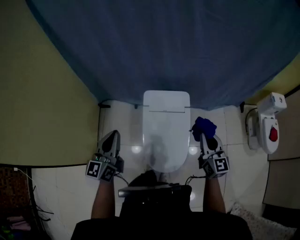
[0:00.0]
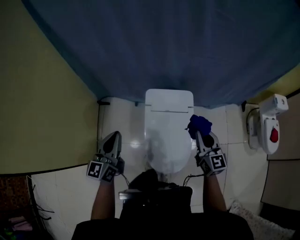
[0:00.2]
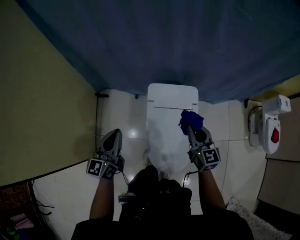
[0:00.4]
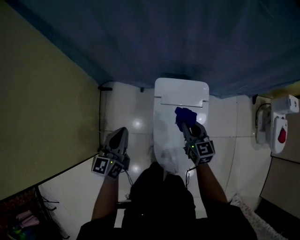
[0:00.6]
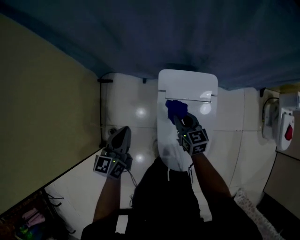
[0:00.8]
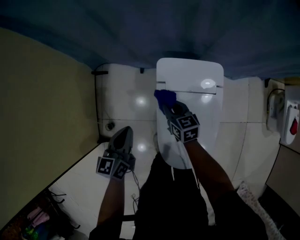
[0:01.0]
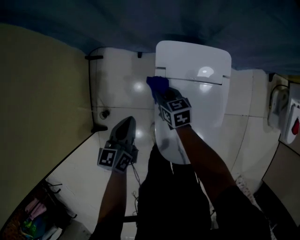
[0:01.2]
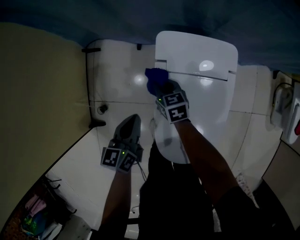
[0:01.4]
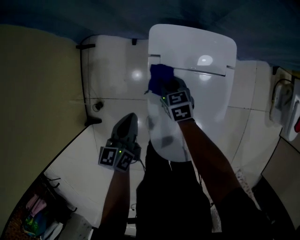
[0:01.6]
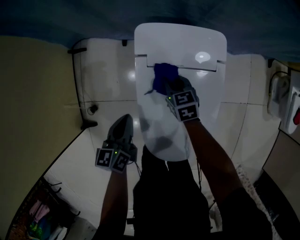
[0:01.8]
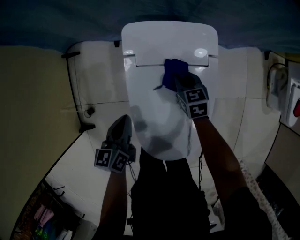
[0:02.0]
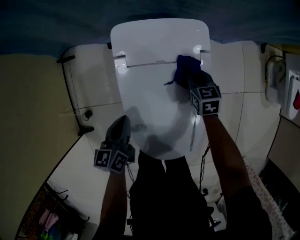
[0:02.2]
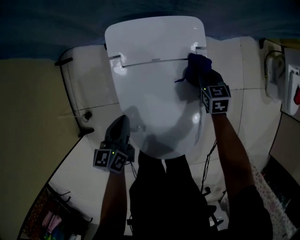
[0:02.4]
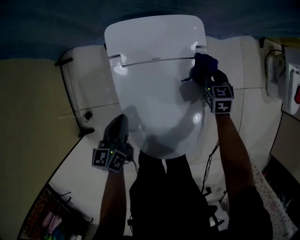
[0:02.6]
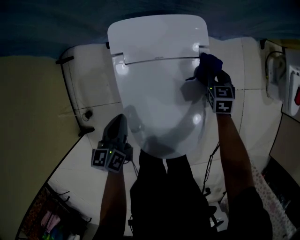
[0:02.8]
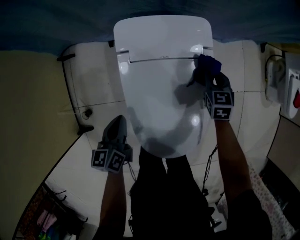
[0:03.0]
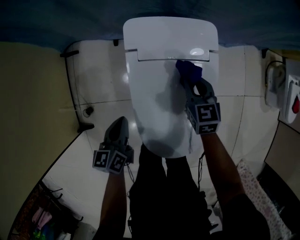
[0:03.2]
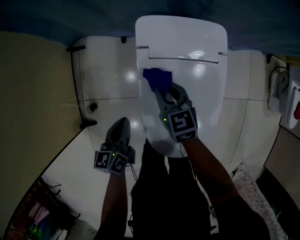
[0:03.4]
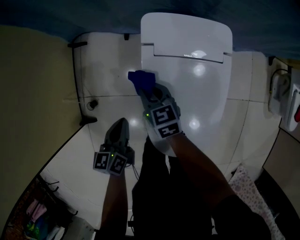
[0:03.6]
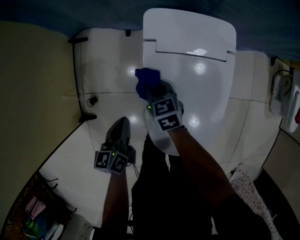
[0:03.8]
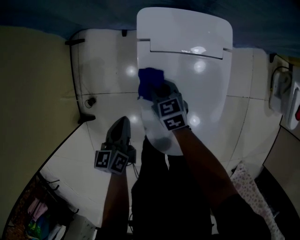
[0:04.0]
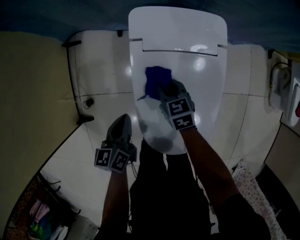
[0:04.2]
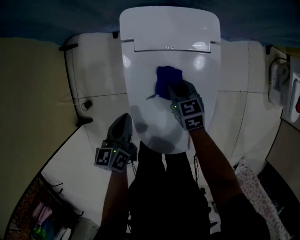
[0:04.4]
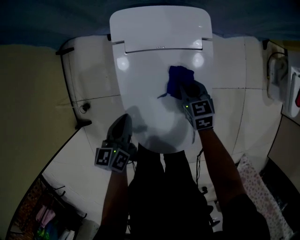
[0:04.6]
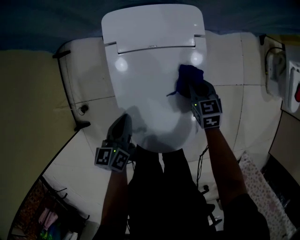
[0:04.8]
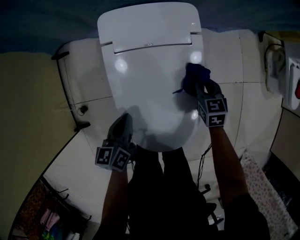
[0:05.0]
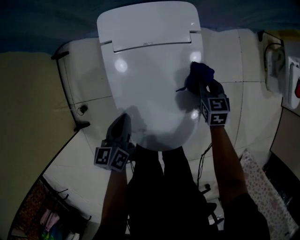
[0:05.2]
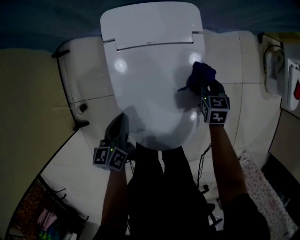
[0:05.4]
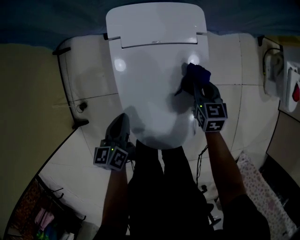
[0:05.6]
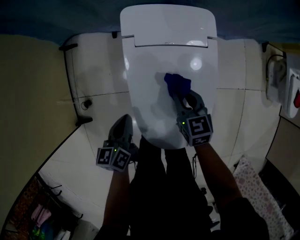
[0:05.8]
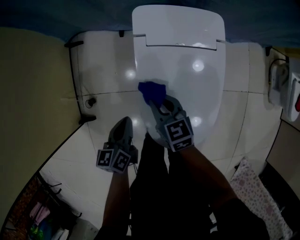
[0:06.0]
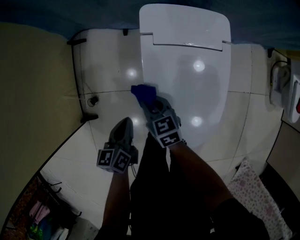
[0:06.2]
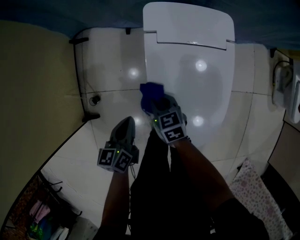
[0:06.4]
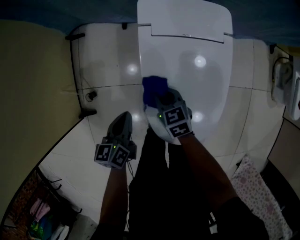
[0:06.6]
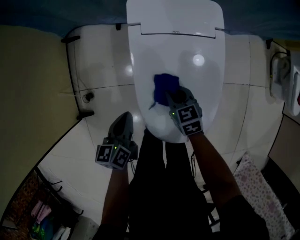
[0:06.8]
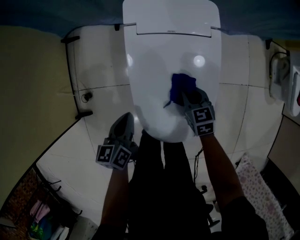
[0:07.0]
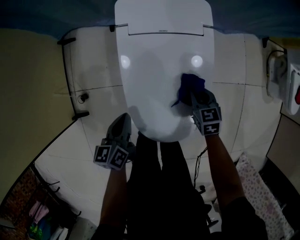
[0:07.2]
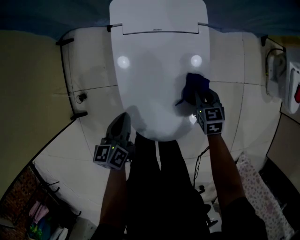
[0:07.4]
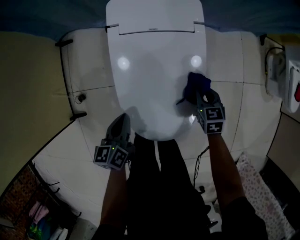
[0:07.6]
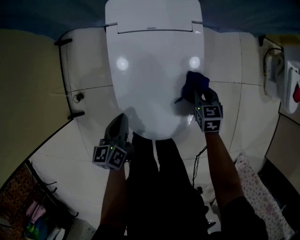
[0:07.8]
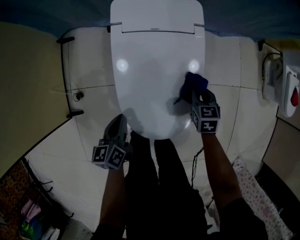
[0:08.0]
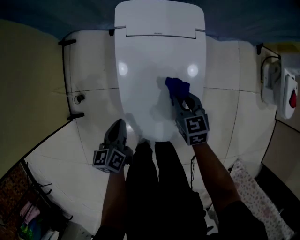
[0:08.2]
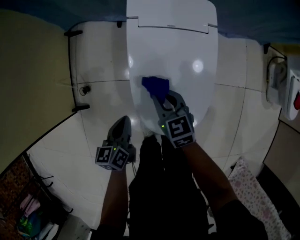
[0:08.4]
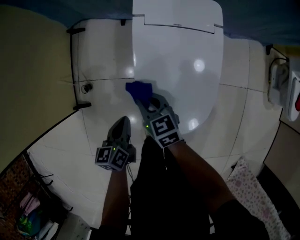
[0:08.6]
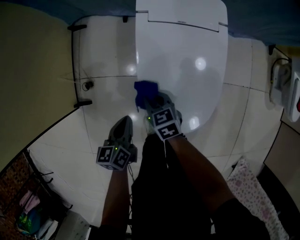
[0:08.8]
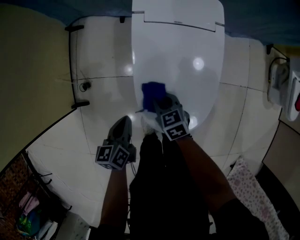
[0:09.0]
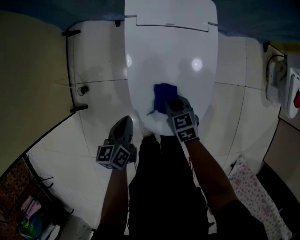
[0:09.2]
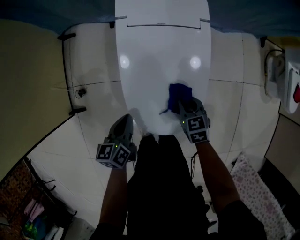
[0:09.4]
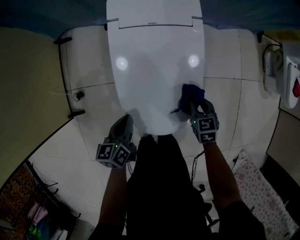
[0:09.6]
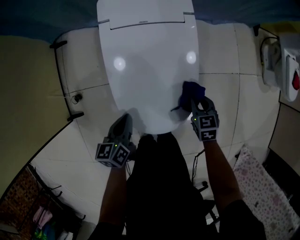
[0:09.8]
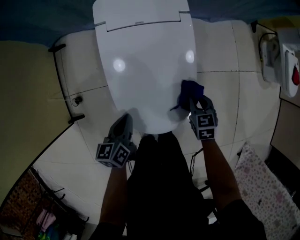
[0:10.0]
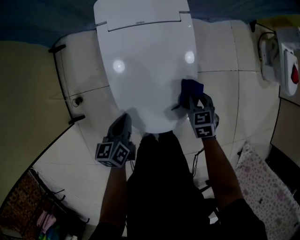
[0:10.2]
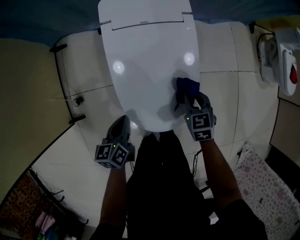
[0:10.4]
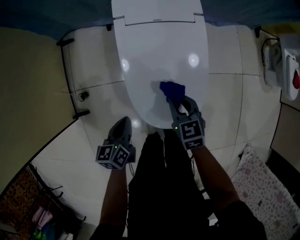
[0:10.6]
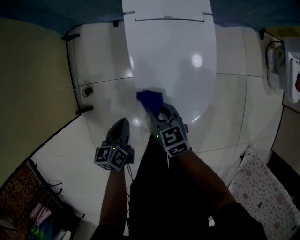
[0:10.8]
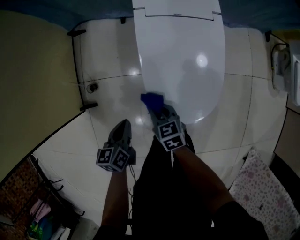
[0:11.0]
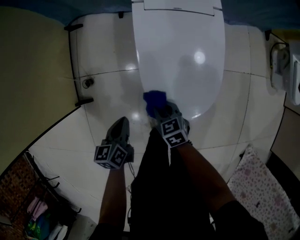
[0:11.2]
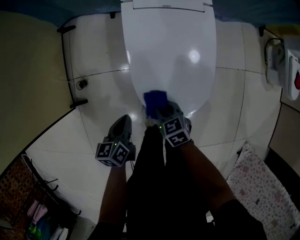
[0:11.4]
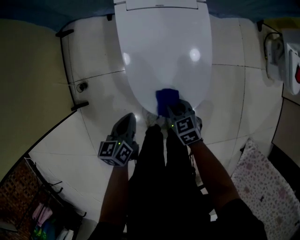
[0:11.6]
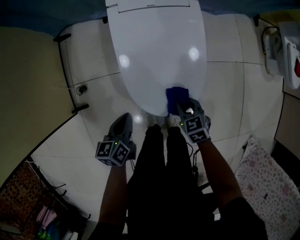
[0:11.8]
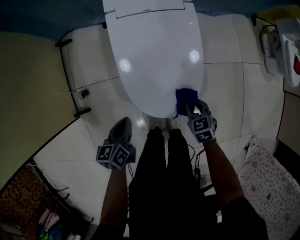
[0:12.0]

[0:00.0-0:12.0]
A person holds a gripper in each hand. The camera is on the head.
0:00.0 to 0:01.6: The right gripper shifts approximately 60 cm downward, forward and to the left, and tips its fingers downward by about 40 degrees. Meanwhile the left gripper is displaced downward by approximately 40 cm, and turns by some 30 degrees.
0:01.6 to 0:03.0: The right gripper heads to the right, covering approximately 30 cm, and rotates roughly 30 degrees. Meanwhile the left gripper moves some 5 cm.
0:03.0 to 0:04.4: The right gripper heads to the left, covering roughly 20 cm, and swivels some 20 degrees.
0:04.4 to 0:06.0: The right gripper goes roughly 15 cm to the left, upward and backward. The left gripper changes place by some 5 cm.
0:06.0 to 0:07.6: The left gripper is displaced to the right and backward by approximately 10 cm. The right gripper shifts approximately 30 cm to the right, and swivels about 30 degrees.
0:07.6 to 0:09.0: The right gripper is displaced to the left by approximately 25 cm, and rotates approximately 20 degrees. The left gripper goes about 10 cm to the left and backward.
0:09.0 to 0:10.4: The right gripper changes place by approximately 20 cm, and rotates some 20 degrees.
0:10.4 to 0:12.0: The left gripper travels backward by about 5 cm, and moves approximately 10 cm to the left and comes back; the right gripper travels backward by about 10 cm, and goes to the left and returns, about 25 cm each way.

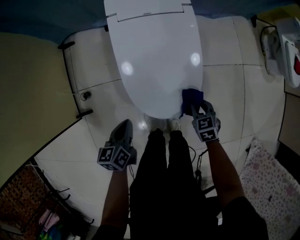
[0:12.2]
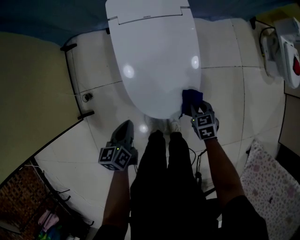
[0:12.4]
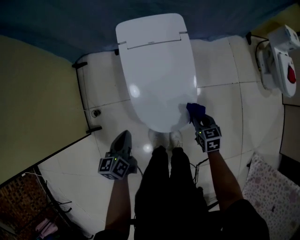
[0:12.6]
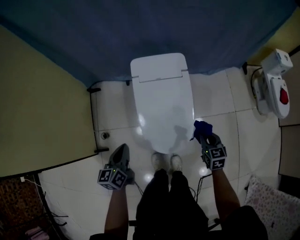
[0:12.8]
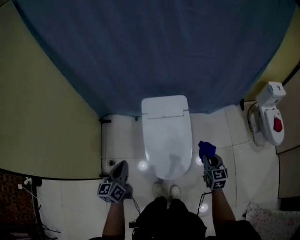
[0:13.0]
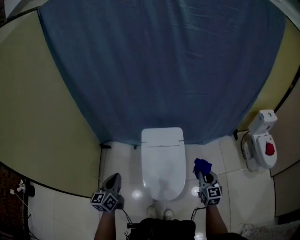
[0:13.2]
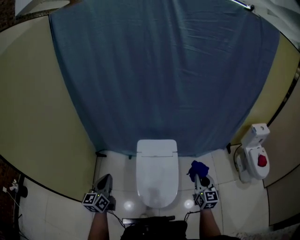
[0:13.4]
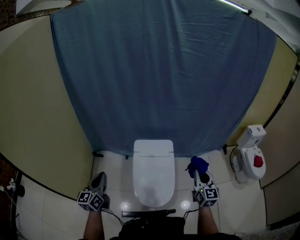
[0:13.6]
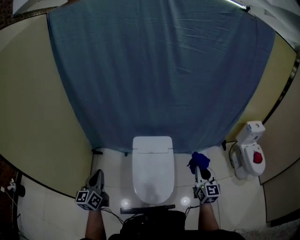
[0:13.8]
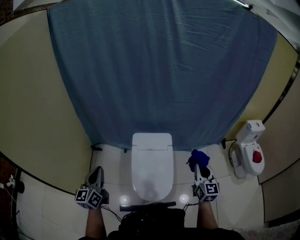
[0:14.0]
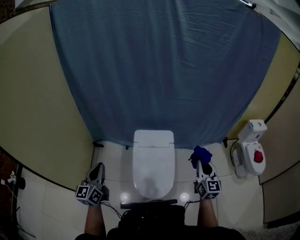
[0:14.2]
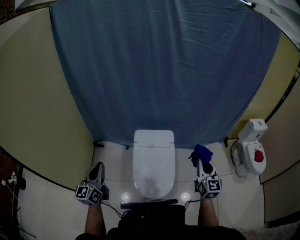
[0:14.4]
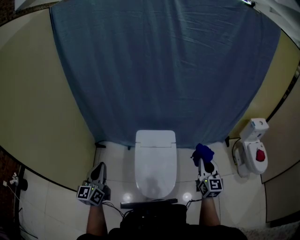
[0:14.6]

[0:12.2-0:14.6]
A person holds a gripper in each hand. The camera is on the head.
0:12.2 to 0:13.4: The two grippers go about 50 cm upward. The left gripper tips its fingers upward by about 30 degrees. The right gripper tips its fingers upward by about 50 degrees.
0:13.4 to 0:14.6: The right gripper travels upward by roughly 5 cm. Meanwhile the left gripper ends up some 5 cm from where it was.

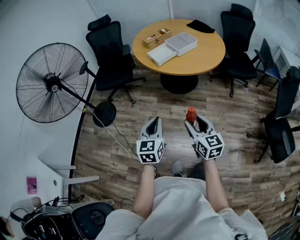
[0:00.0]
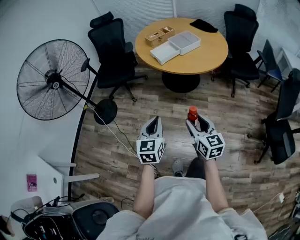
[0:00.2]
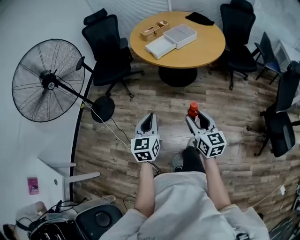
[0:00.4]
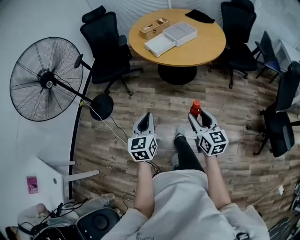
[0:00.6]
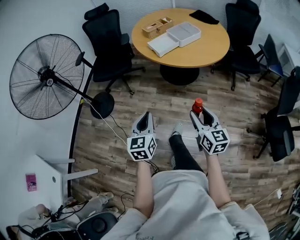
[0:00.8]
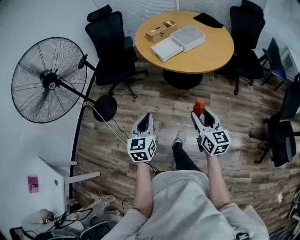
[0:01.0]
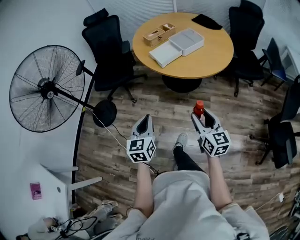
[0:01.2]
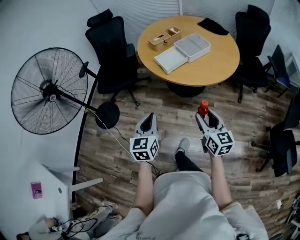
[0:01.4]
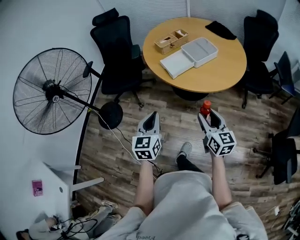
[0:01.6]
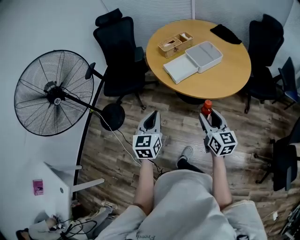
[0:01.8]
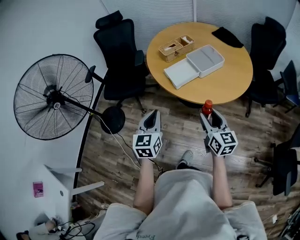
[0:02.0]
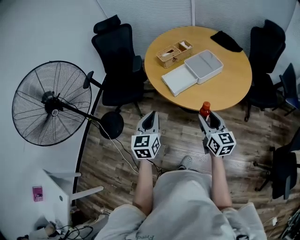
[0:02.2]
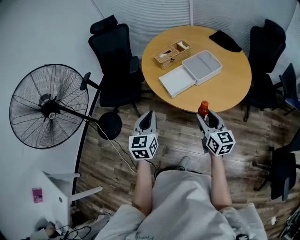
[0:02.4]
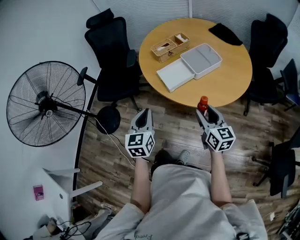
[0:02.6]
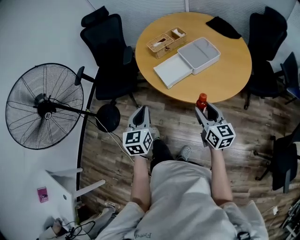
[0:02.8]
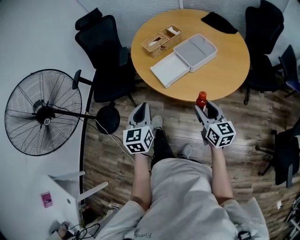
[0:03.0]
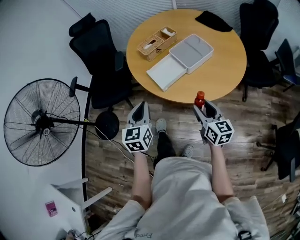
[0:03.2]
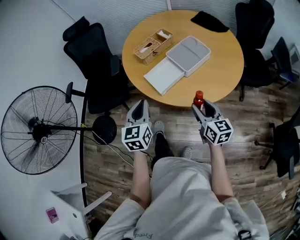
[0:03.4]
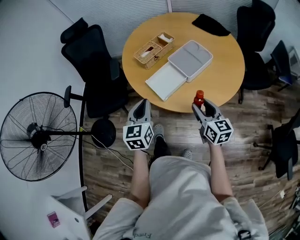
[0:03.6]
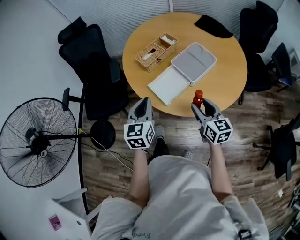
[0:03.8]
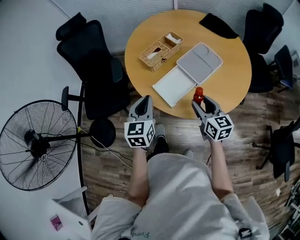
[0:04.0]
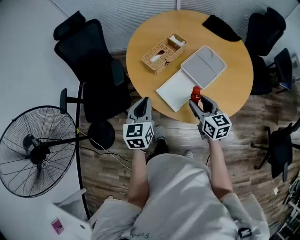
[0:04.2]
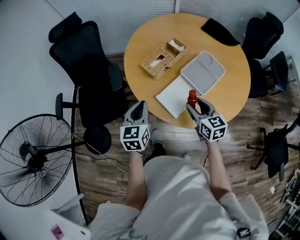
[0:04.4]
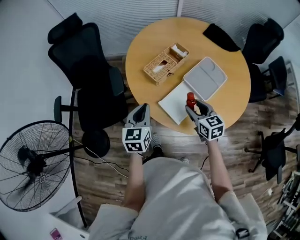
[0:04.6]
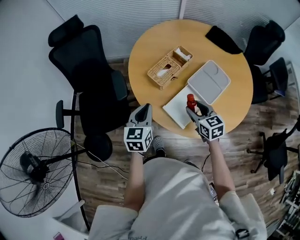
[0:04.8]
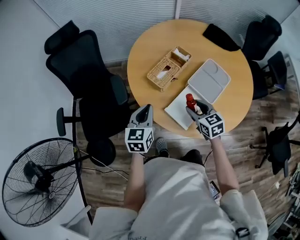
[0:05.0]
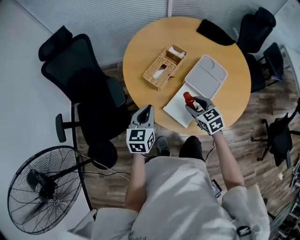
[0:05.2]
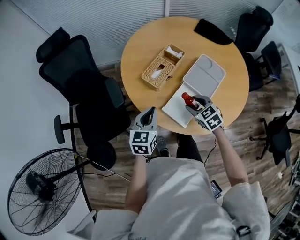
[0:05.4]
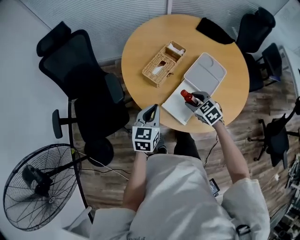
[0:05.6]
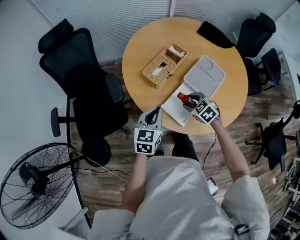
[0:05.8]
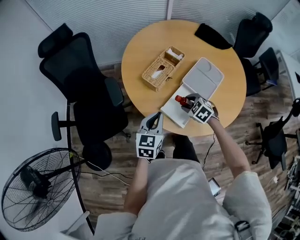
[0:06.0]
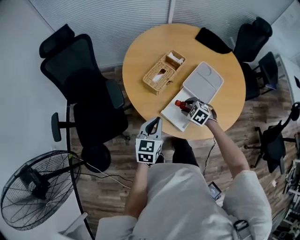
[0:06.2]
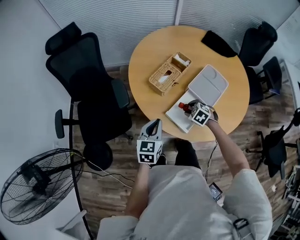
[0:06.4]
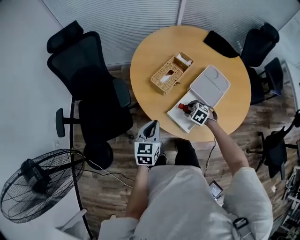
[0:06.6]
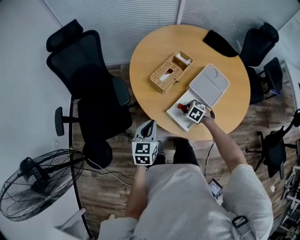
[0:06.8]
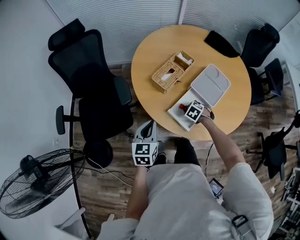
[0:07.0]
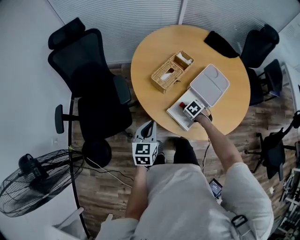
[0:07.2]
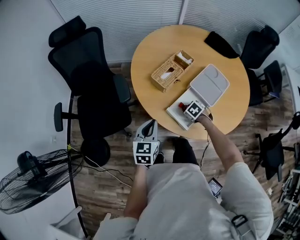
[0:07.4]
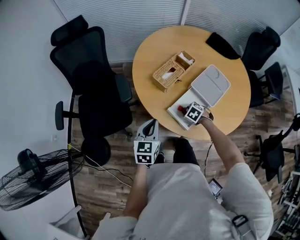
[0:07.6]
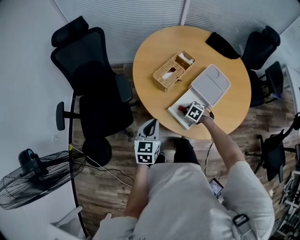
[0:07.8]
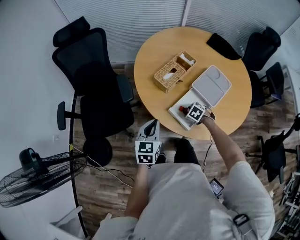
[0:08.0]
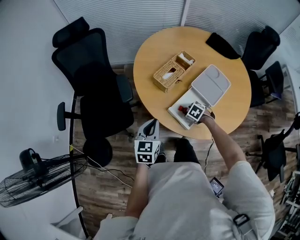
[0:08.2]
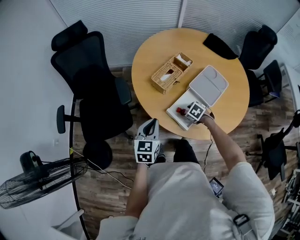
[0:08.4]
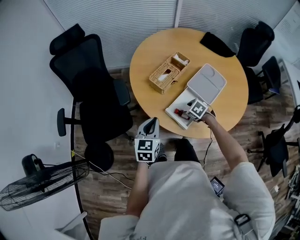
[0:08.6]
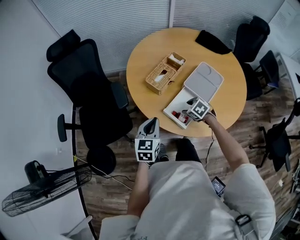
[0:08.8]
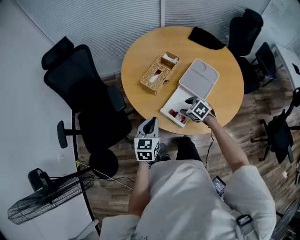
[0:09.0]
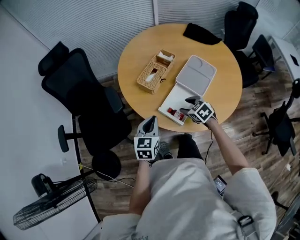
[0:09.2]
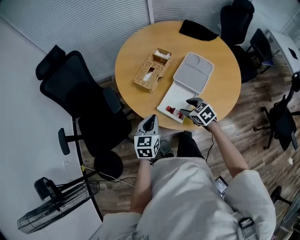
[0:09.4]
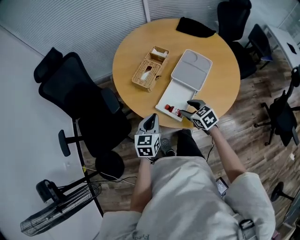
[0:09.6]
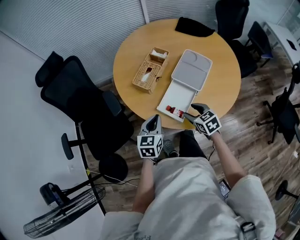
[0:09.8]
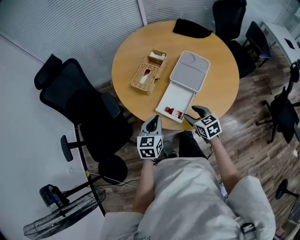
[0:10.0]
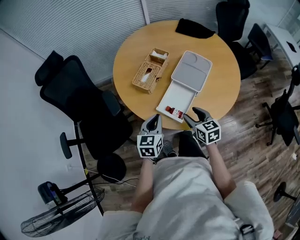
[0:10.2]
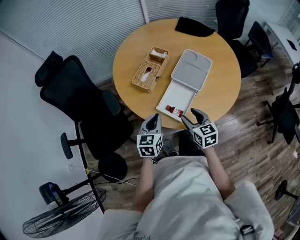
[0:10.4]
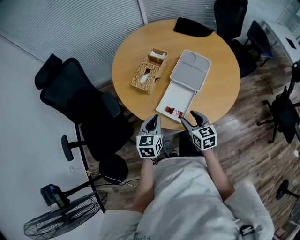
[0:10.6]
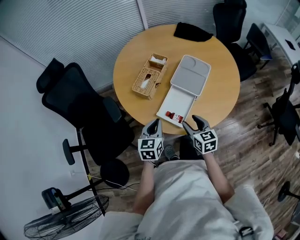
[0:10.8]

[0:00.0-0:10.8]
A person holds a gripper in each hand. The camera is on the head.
0:00.0 to 0:01.6: Both grippers move forward, some 20 cm.
0:01.6 to 0:03.0: The grippers both shift forward by some 15 cm.
0:03.0 to 0:04.6: The left gripper is displaced forward by approximately 25 cm, while the right gripper goes roughly 25 cm forward and to the left.
0:04.6 to 0:06.2: The right gripper moves downward, approximately 10 cm, and points its fingers about 30 degrees further downward.
0:06.2 to 0:07.8: The left gripper shifts by approximately 5 cm. Meanwhile the right gripper travels downward by roughly 10 cm.
0:07.8 to 0:09.2: The right gripper moves upward, about 10 cm, and turns by about 30 degrees.
0:09.2 to 0:10.8: The right gripper goes roughly 5 cm backward, and swivels roughly 40 degrees.
